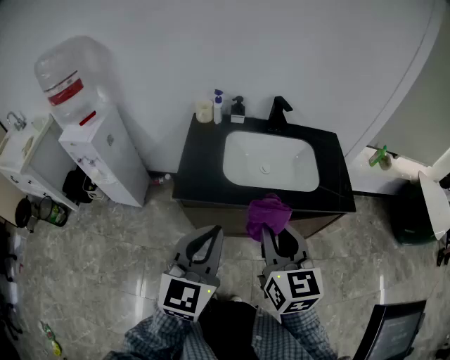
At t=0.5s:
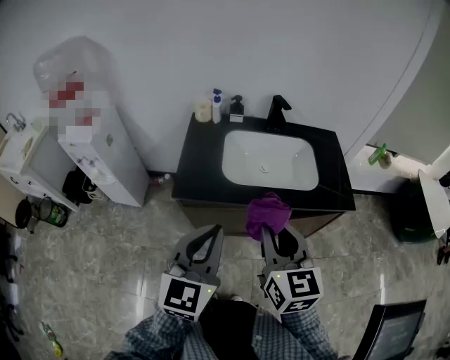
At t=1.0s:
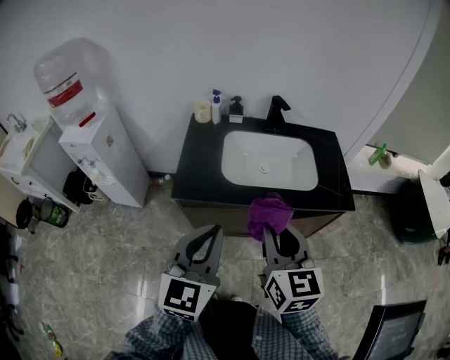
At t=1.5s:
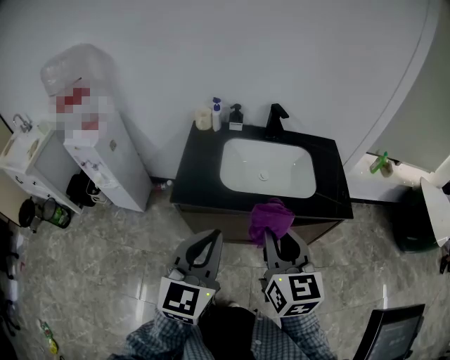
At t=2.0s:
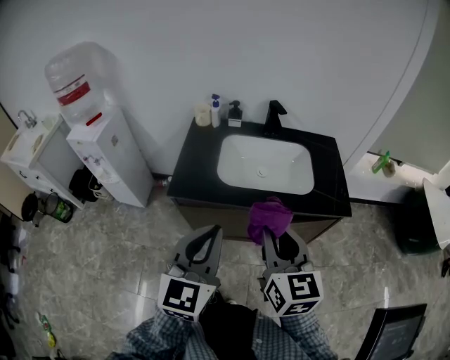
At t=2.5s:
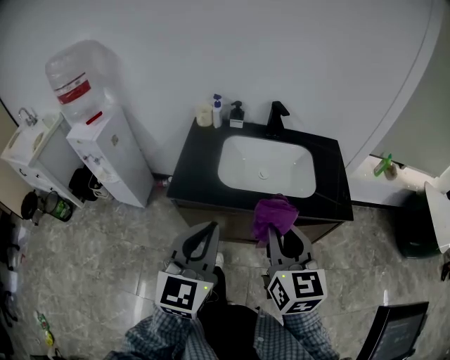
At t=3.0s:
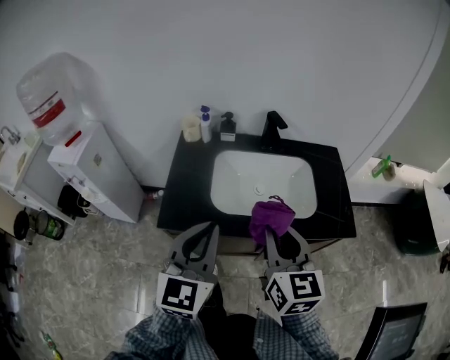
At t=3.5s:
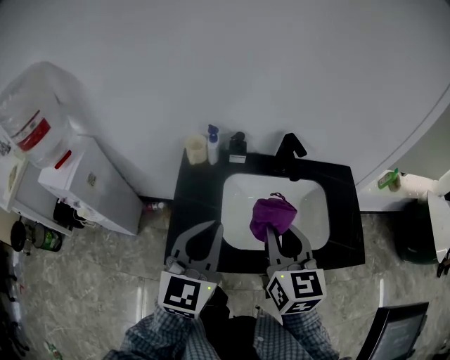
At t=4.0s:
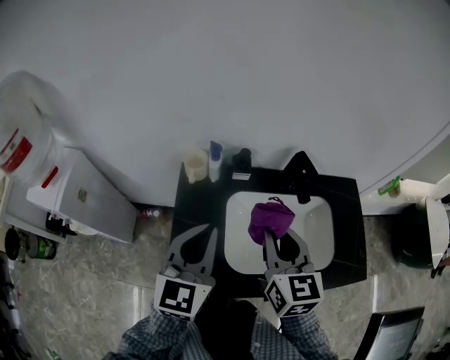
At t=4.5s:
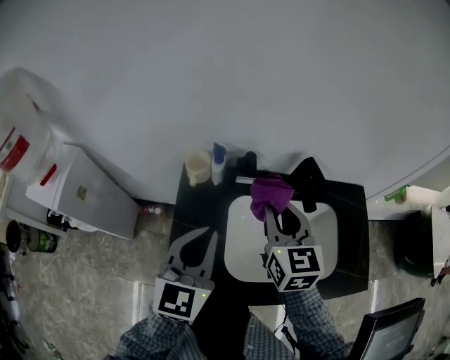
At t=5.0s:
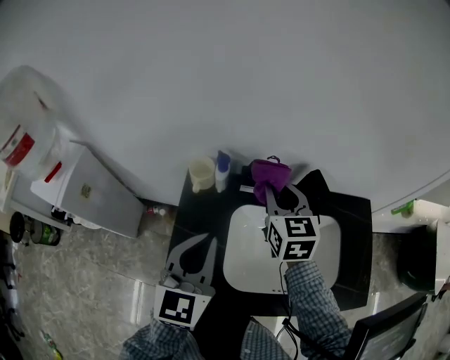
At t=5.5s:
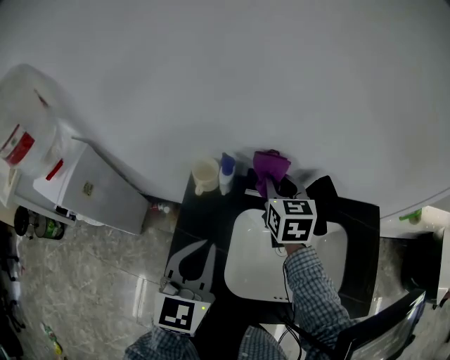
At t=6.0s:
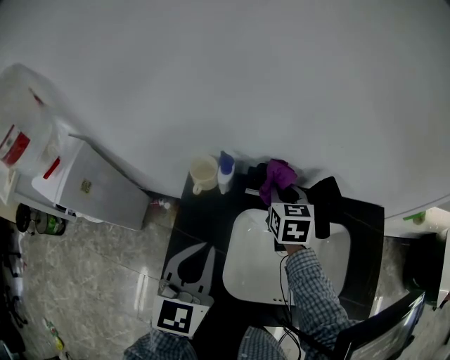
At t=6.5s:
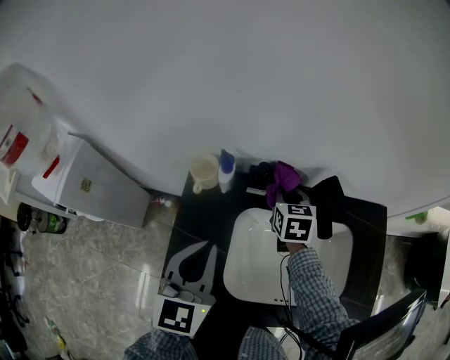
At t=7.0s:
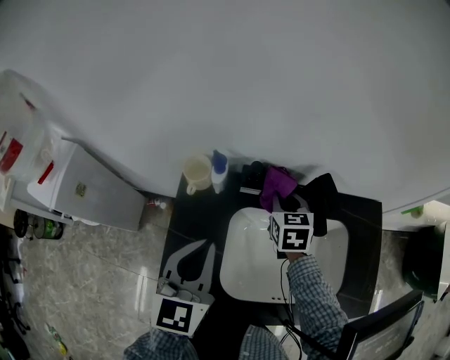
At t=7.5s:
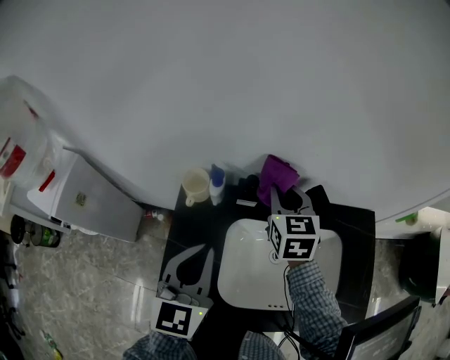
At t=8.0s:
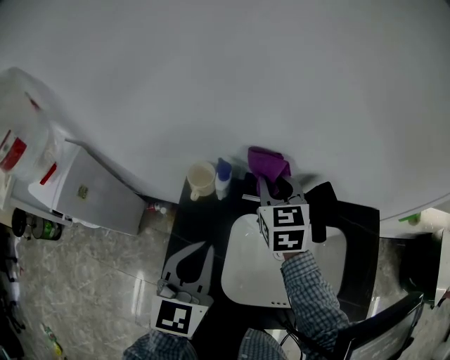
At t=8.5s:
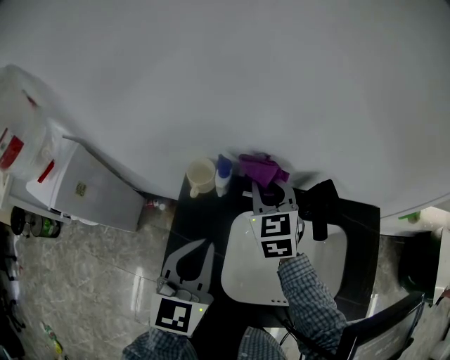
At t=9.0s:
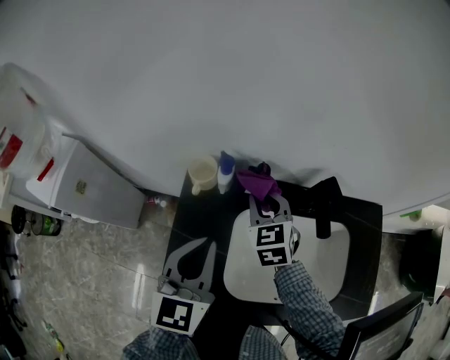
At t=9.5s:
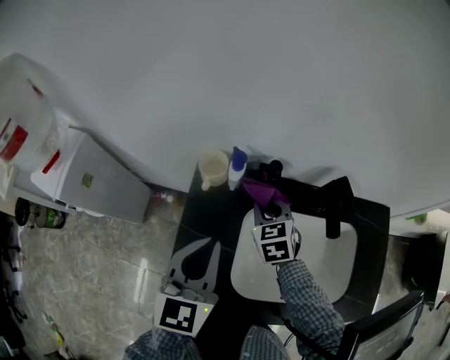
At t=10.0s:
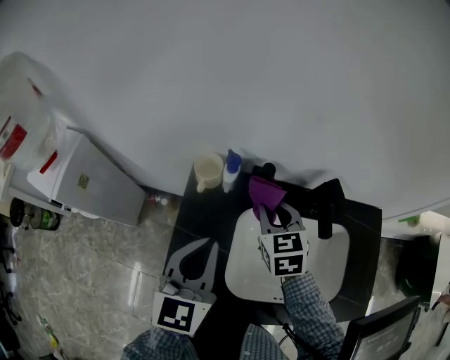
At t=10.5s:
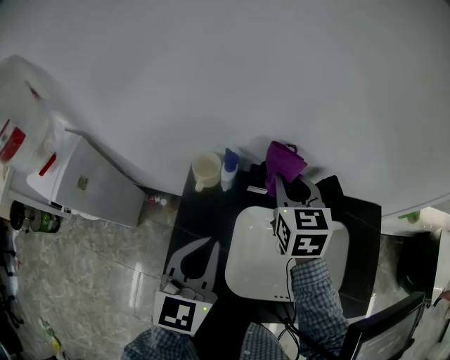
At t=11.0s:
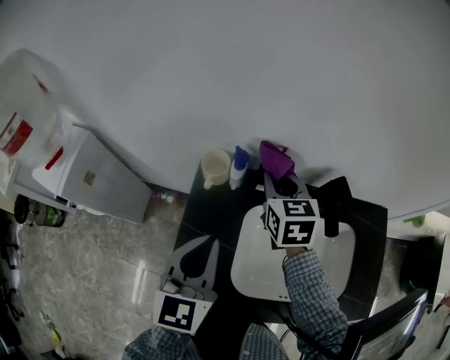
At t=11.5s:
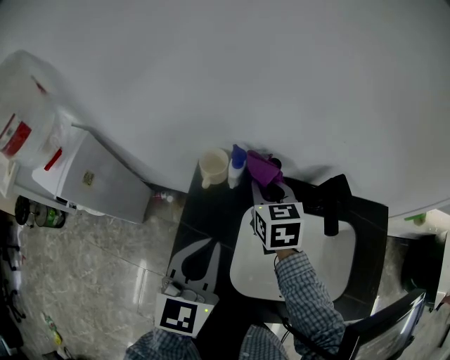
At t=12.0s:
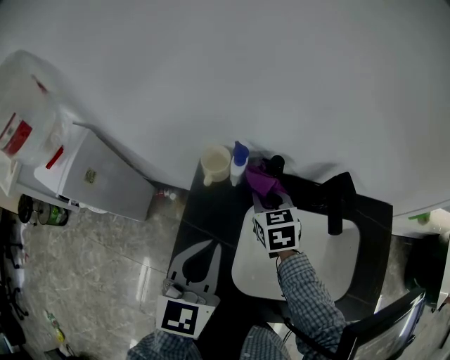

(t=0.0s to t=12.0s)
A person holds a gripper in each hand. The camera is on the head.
t=0.0s - t=2.0s: The two grippers go about 5 cm to the right.
t=2.0s - t=4.0s: The grippers both shift forward by some 40 cm.
t=4.0s - t=6.0s: The right gripper moves forward and downward, approximately 30 cm. Meanwhile the left gripper travels downward and forward by roughly 10 cm.
t=6.0s - t=8.0s: The right gripper heads upward, covering some 10 cm.
t=8.0s - t=10.0s: The right gripper heads backward and downward, covering roughly 10 cm.
t=10.0s - t=12.0s: The right gripper shifts some 5 cm downward.

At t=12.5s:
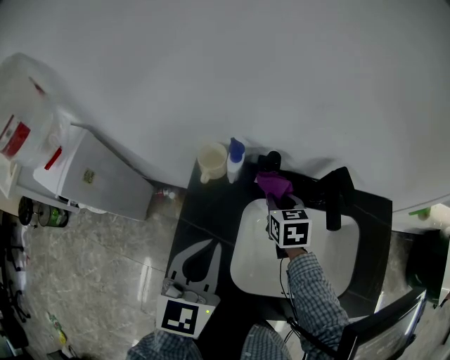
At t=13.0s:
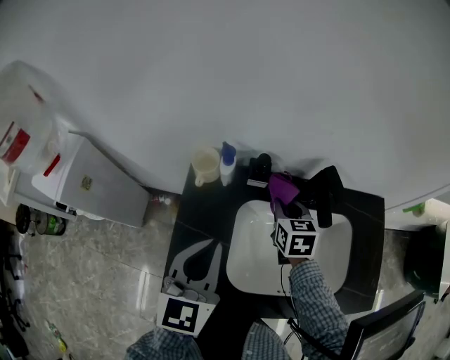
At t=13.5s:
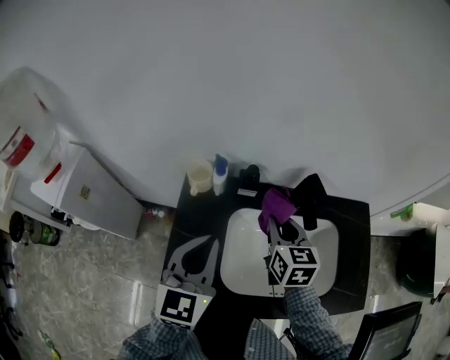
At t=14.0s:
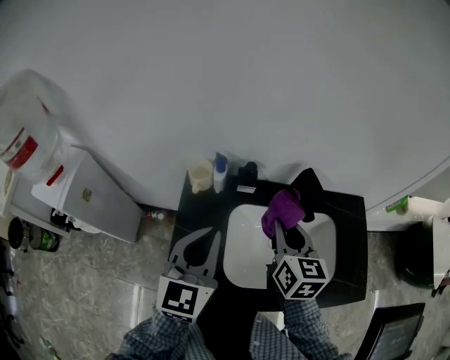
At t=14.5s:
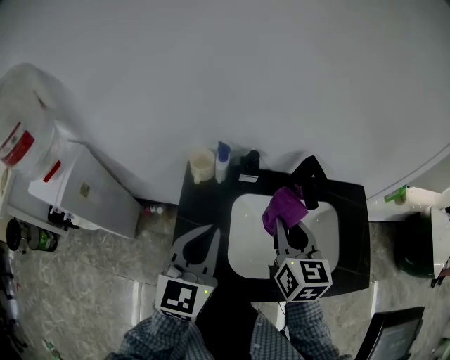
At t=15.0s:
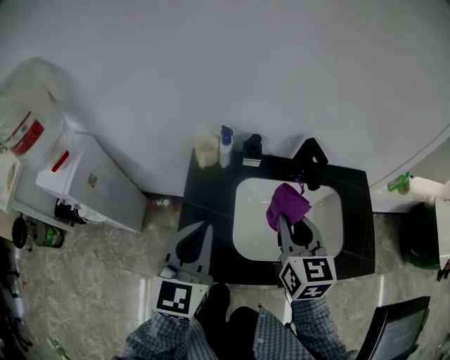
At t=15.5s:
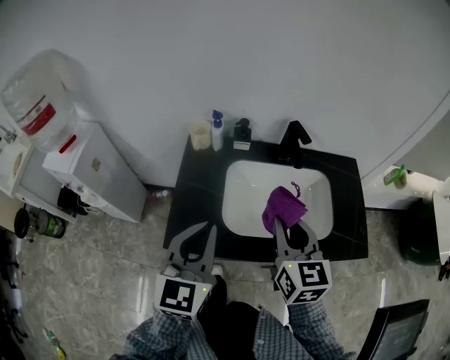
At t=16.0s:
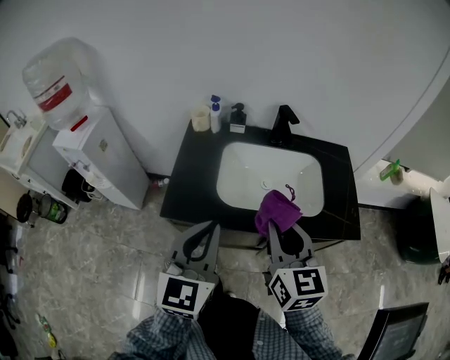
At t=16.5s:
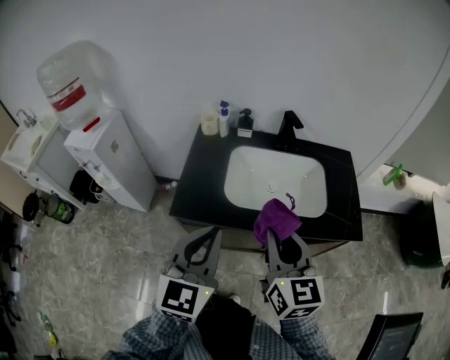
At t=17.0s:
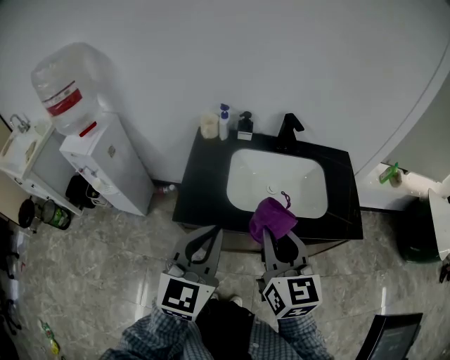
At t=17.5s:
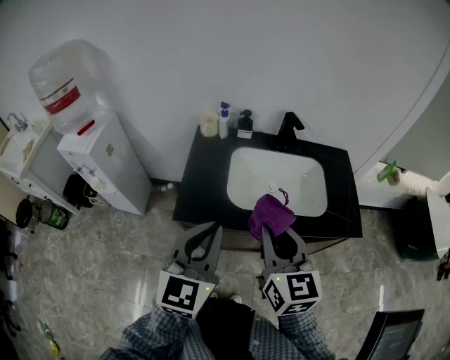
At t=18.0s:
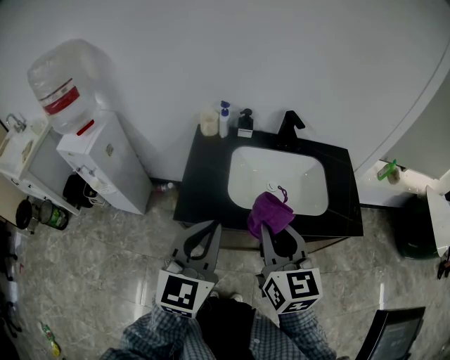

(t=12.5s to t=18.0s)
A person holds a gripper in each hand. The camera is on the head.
t=12.5s - t=14.5s: The right gripper is displaced upward and backward by approximately 25 cm, and turns by approximately 30 degrees. Meanwhile the left gripper heads upward, covering approximately 5 cm.
t=14.5s - t=16.0s: Both grippers move backward, roughly 25 cm.
t=16.0s - t=18.0s: The grippers both shift to the left by about 5 cm.

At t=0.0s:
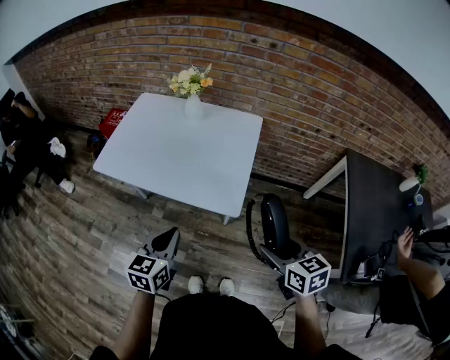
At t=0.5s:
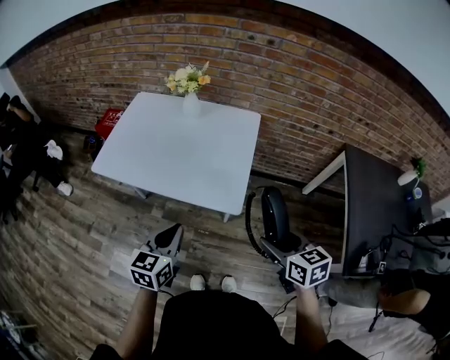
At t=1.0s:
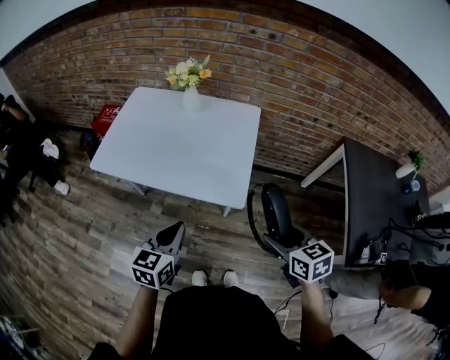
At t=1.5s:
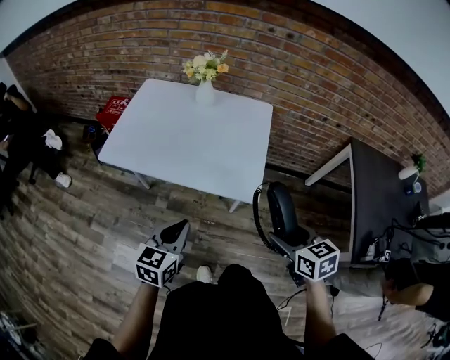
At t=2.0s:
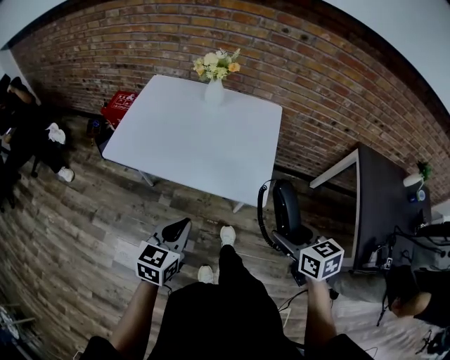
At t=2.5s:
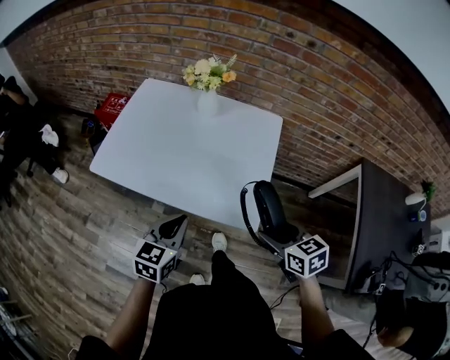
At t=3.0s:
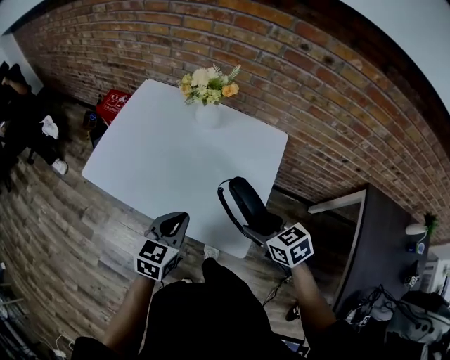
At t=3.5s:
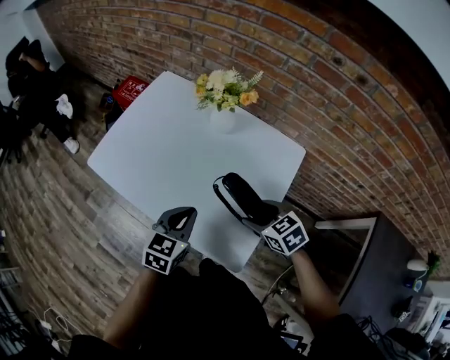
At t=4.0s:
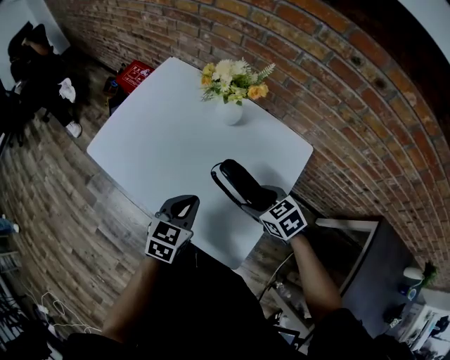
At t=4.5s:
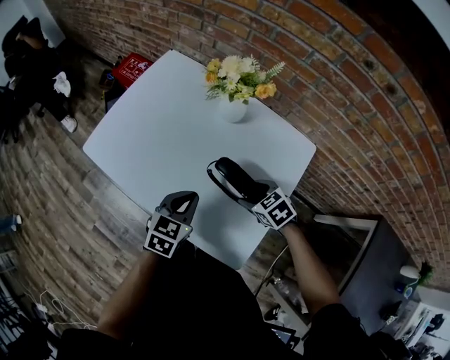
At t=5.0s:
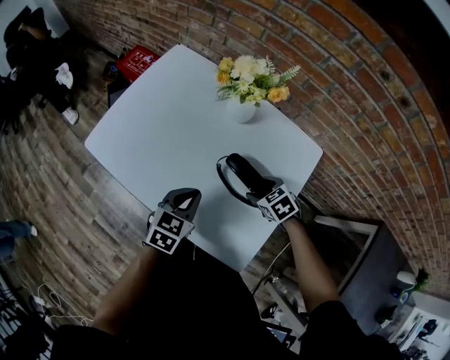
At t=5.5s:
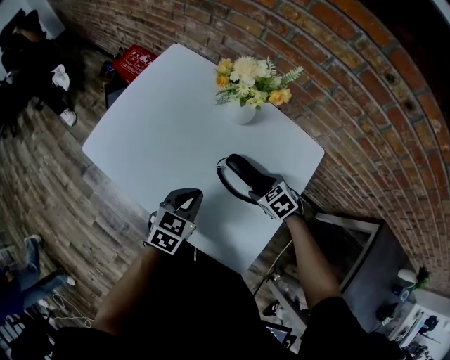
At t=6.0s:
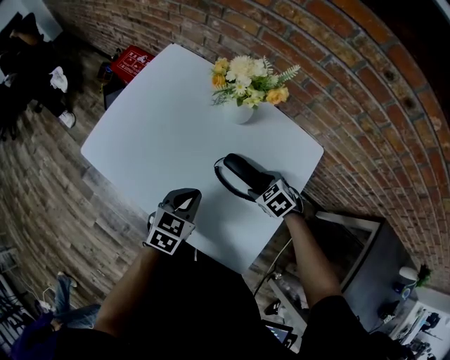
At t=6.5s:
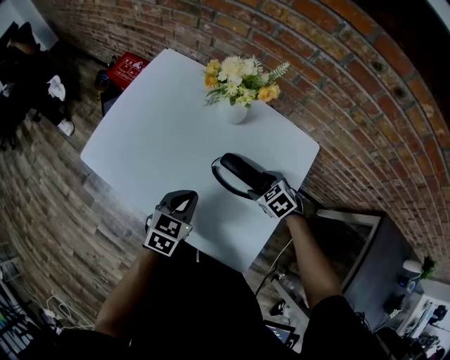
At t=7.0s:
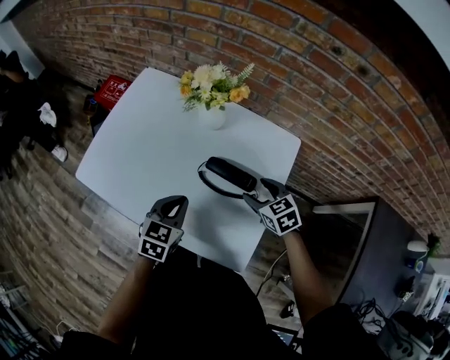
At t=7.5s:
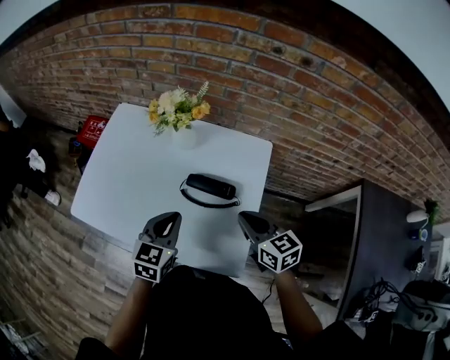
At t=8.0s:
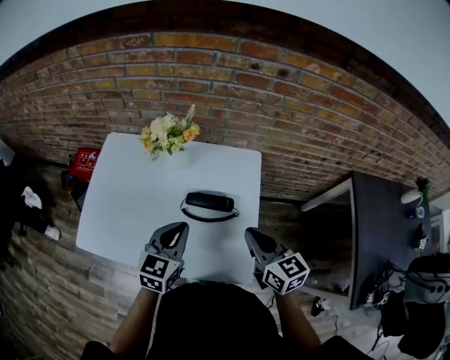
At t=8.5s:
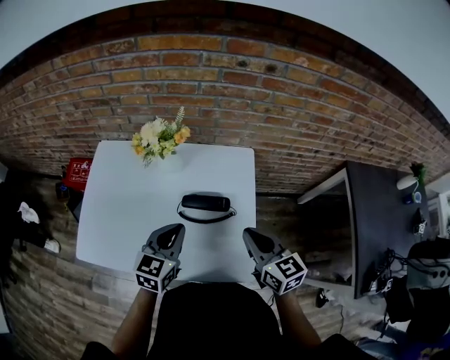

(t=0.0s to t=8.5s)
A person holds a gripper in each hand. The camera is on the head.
t=0.0s - t=2.0s: The grippers both shift to the left by roughly 10 cm.
t=2.0s - t=4.0s: The right gripper ends up approximately 40 cm from where it was, and changes its angle by approximately 50 degrees. The left gripper changes place by some 30 cm.
t=4.0s - t=6.5s: The right gripper goes about 10 cm downward and forward. The left gripper shifts by roughly 5 cm.
t=6.5s - t=8.5s: The right gripper is displaced upward by roughly 25 cm, tips its fingers upward by roughly 40 degrees, and closes. Meanwhile the left gripper travels upward by about 10 cm, and swivels about 20 degrees.

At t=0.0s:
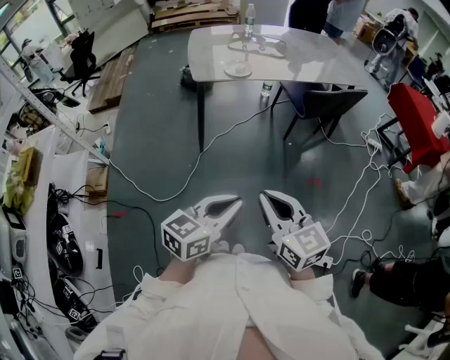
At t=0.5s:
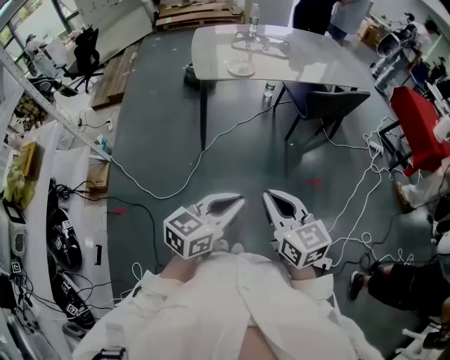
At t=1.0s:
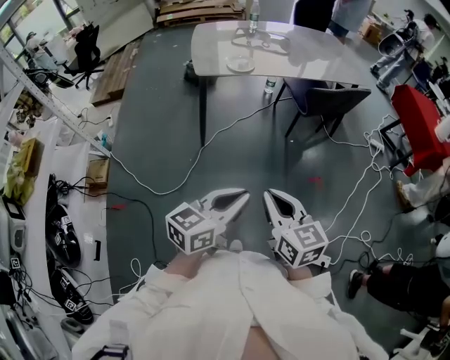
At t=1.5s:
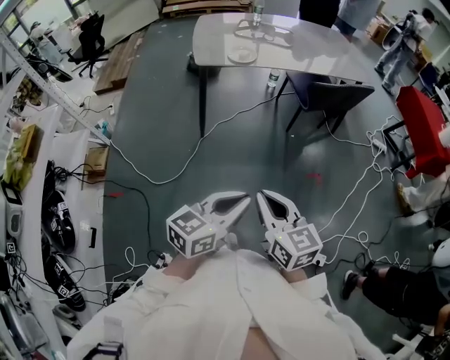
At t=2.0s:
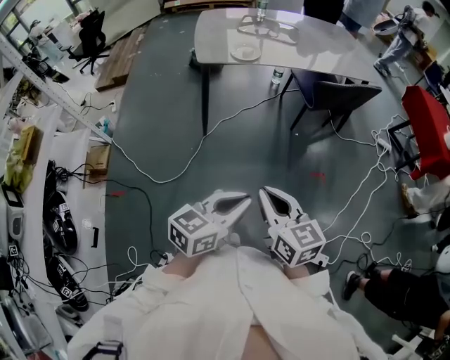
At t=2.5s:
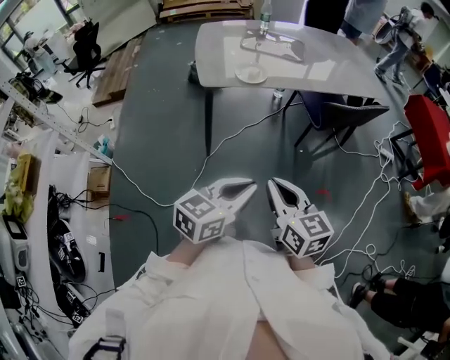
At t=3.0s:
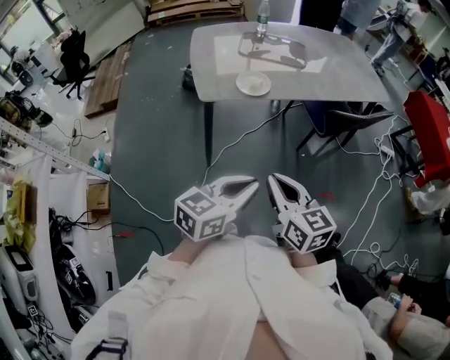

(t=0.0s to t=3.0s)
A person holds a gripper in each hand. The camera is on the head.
t=0.0s - t=1.5s: The left gripper goes roughly 5 cm to the right, while the right gripper changes place by roughly 5 cm.
t=1.5s - t=3.0s: Both grippers travel together forward and to the left, some 30 cm.
